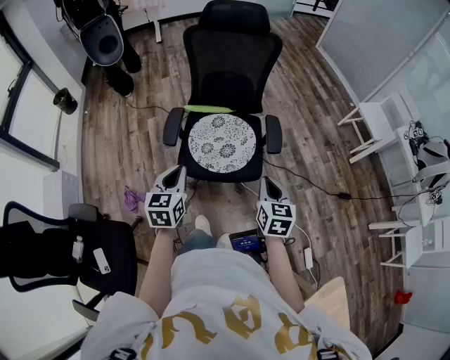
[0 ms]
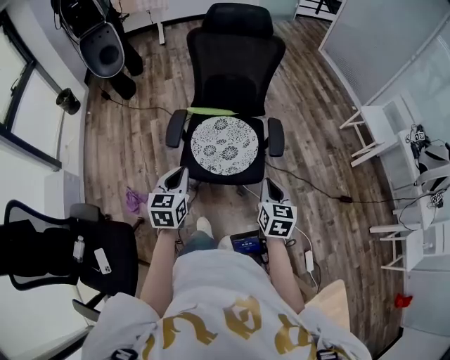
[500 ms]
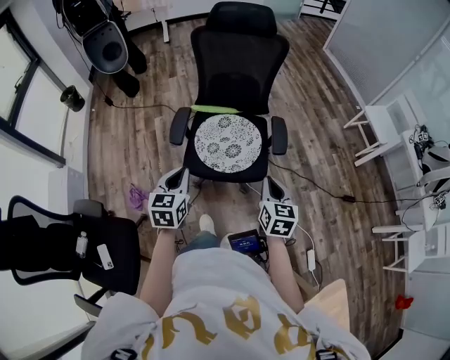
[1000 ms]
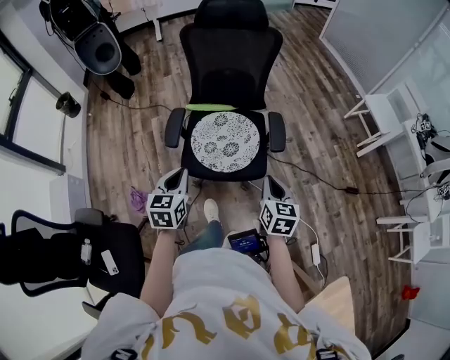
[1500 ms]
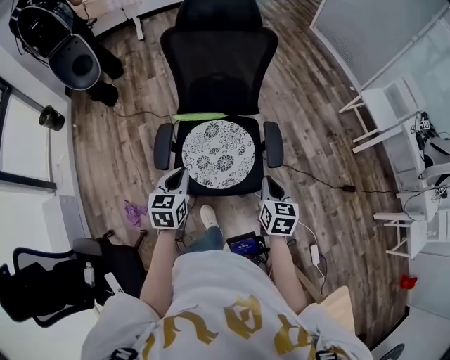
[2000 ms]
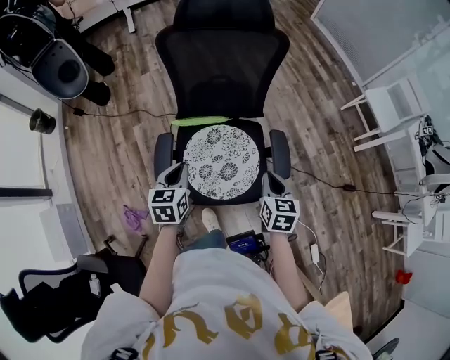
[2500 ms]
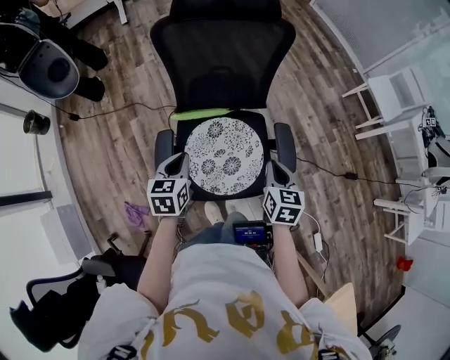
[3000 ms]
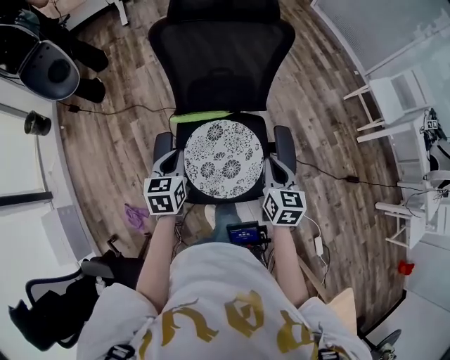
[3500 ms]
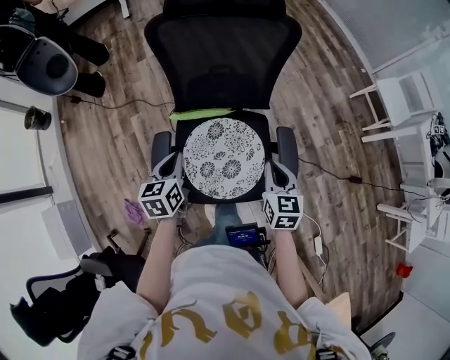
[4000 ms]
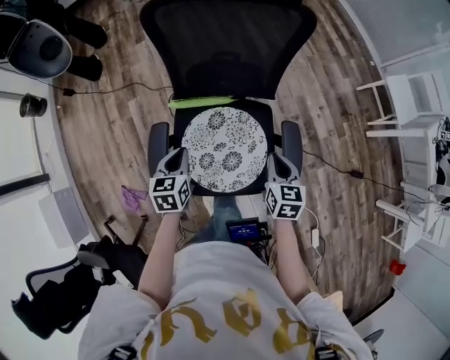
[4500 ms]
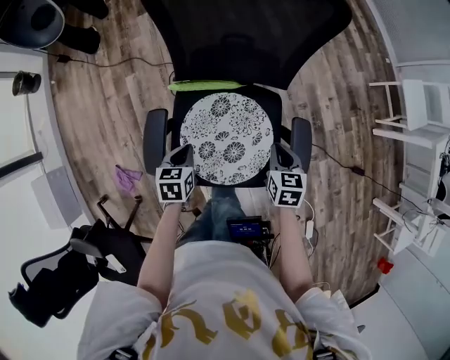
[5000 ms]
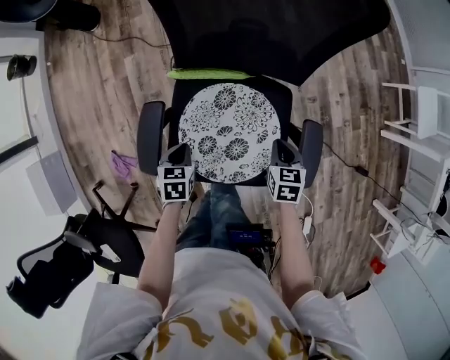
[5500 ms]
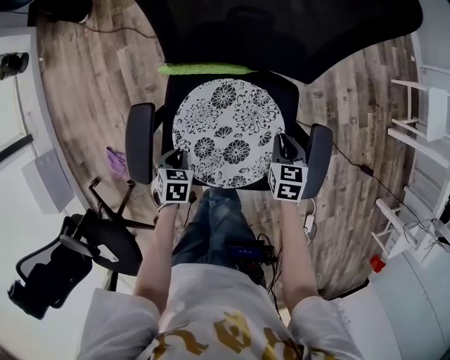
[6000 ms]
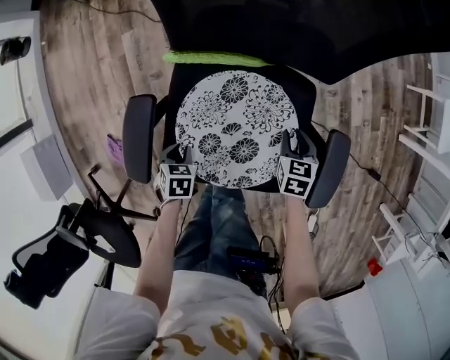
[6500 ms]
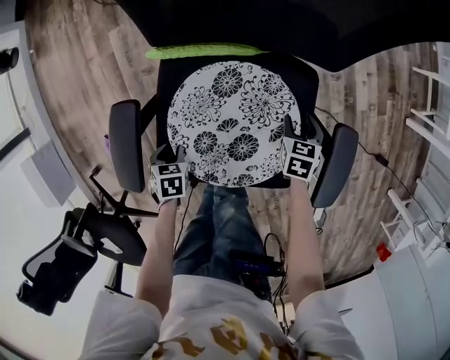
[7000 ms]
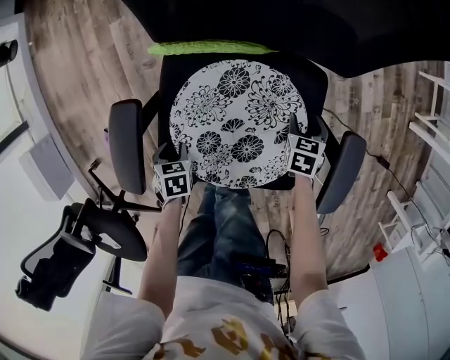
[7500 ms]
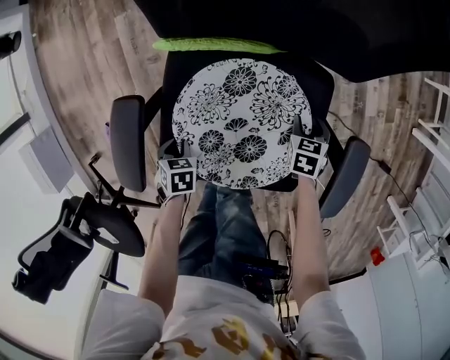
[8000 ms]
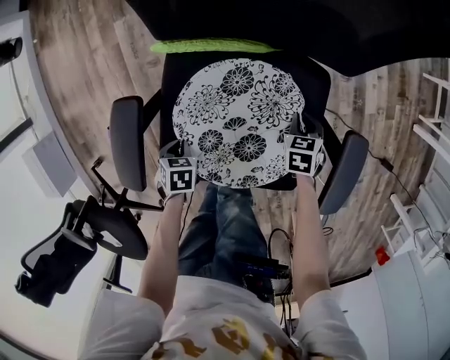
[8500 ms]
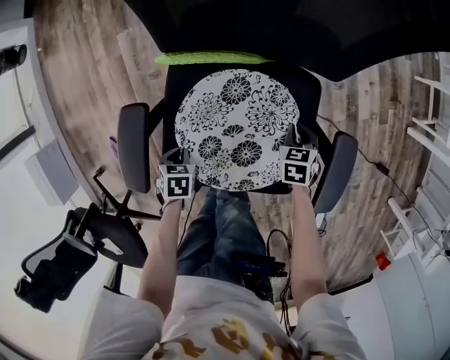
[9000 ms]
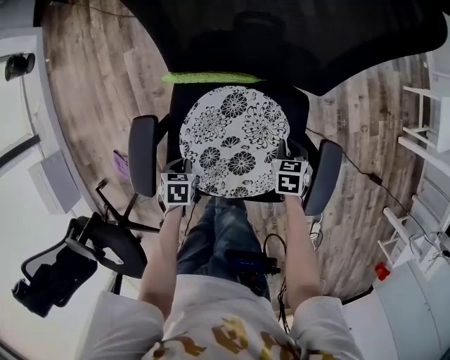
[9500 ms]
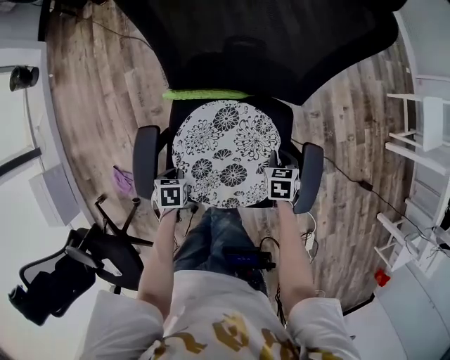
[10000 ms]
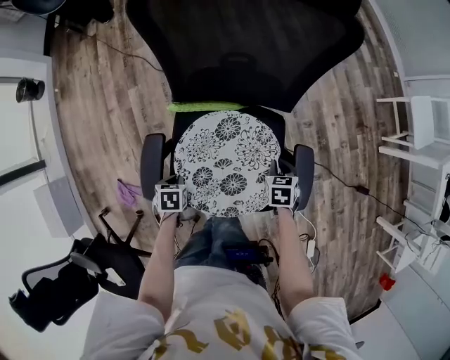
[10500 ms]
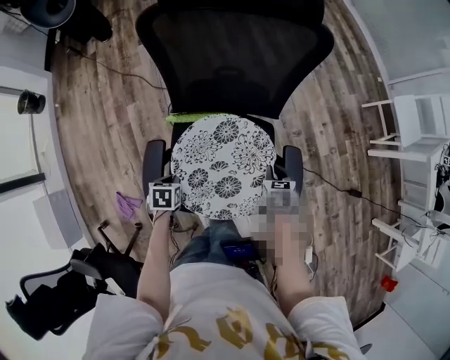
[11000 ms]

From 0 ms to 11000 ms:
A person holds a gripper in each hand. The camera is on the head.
From 0 ms to 2000 ms: The two grippers go some 15 cm forward.
From 2000 ms to 3500 ms: Both grippers travel together forward, approximately 15 cm.
From 3500 ms to 5500 ms: The two grippers go about 25 cm downward. The right gripper swivels roughly 30 degrees; the left gripper rotates about 30 degrees.
From 5500 ms to 7500 ms: Both grippers move downward, approximately 20 cm. The right gripper opens up. Meanwhile the left gripper turns by some 20 degrees, and opens its fingers.
From 7500 ms to 9000 ms: The left gripper closes up. The right gripper closes its fingers.
From 9000 ms to 11000 ms: Both grippers travel together upward, roughly 20 cm.

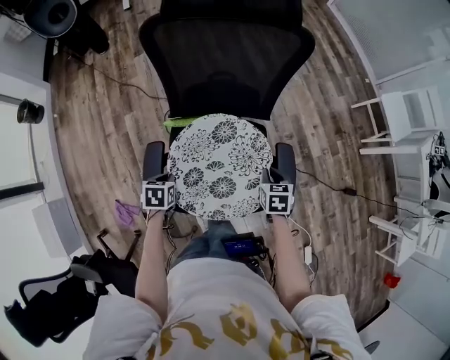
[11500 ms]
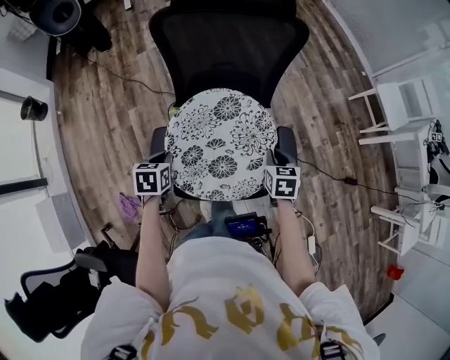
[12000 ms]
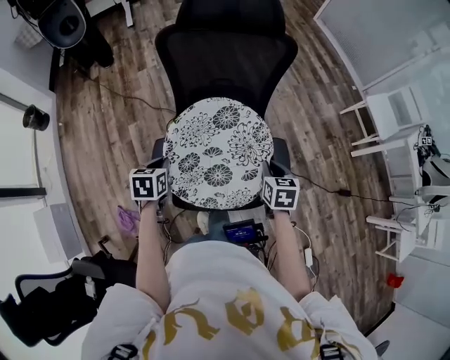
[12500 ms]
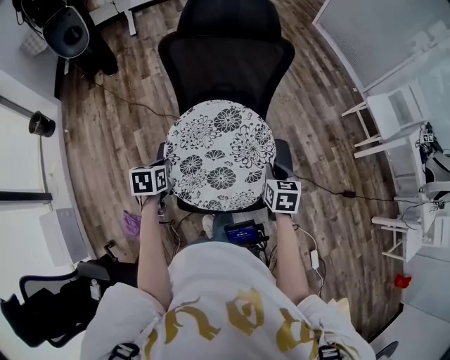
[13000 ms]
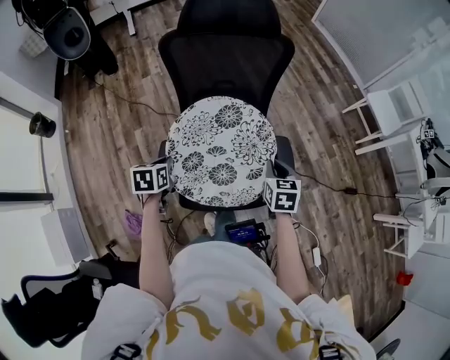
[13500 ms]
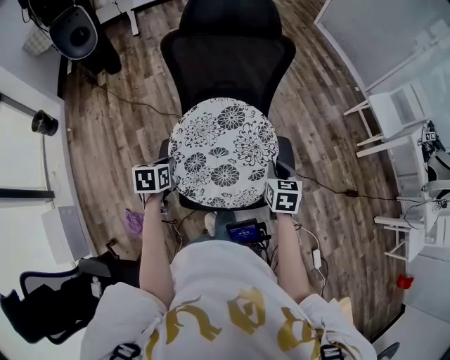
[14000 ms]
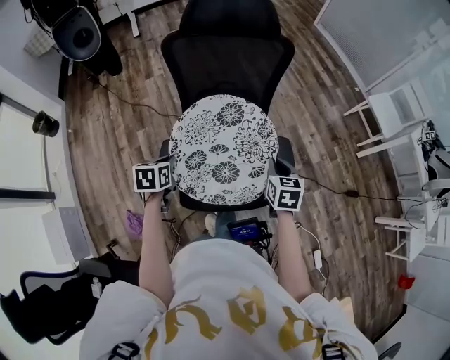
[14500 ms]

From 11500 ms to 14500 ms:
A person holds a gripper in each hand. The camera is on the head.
From 11500 ms to 13000 ms: The grippers both shift upward by some 15 cm.
From 13000 ms to 14500 ms: There are only small adjustments of the grippers.

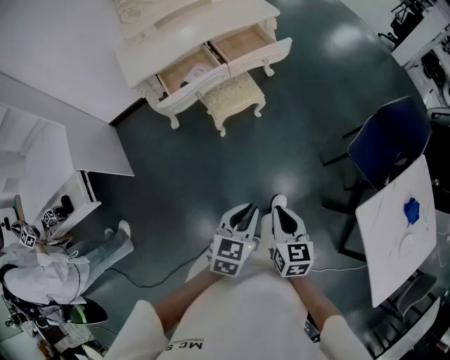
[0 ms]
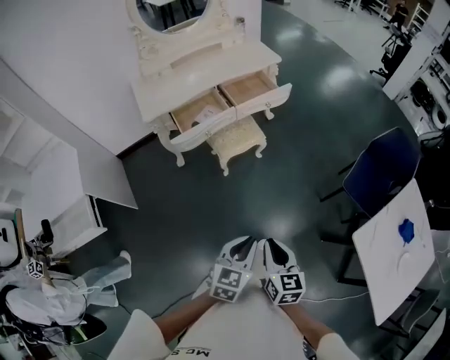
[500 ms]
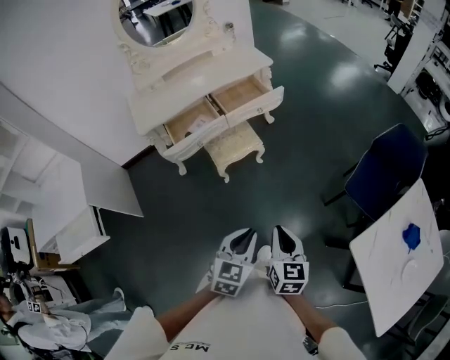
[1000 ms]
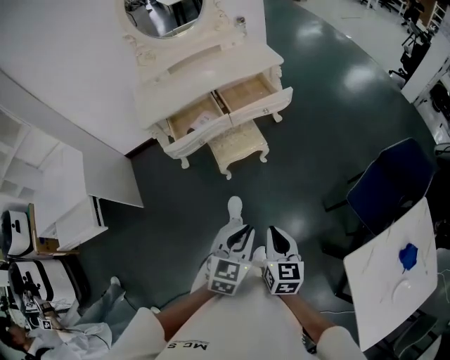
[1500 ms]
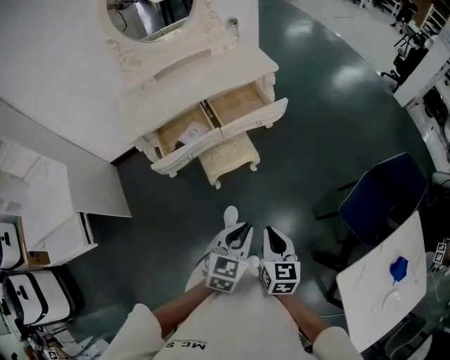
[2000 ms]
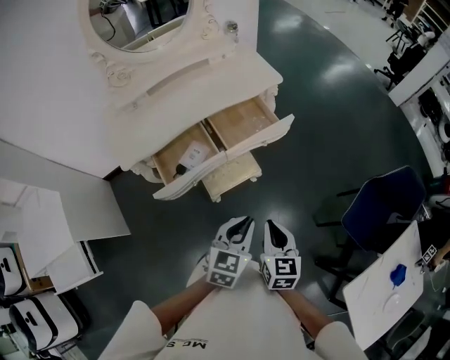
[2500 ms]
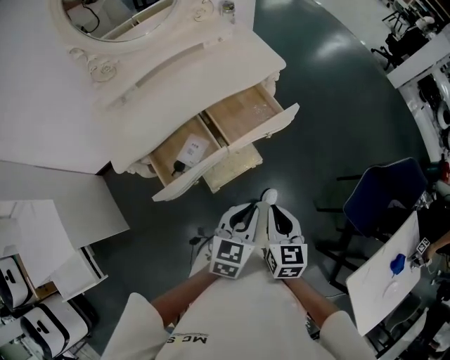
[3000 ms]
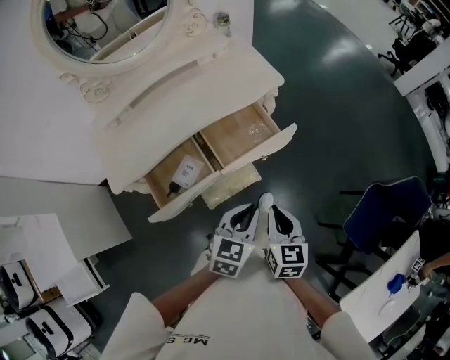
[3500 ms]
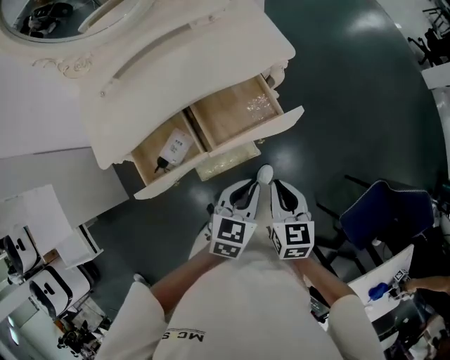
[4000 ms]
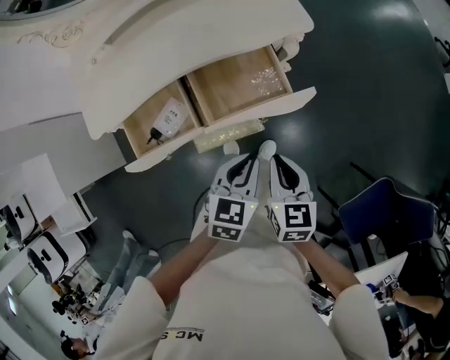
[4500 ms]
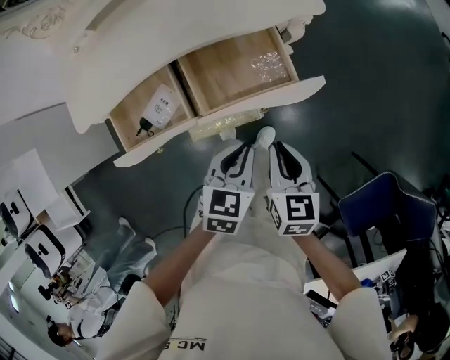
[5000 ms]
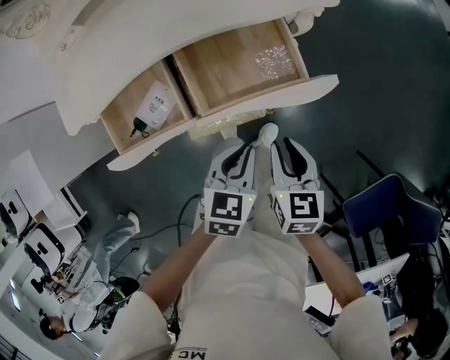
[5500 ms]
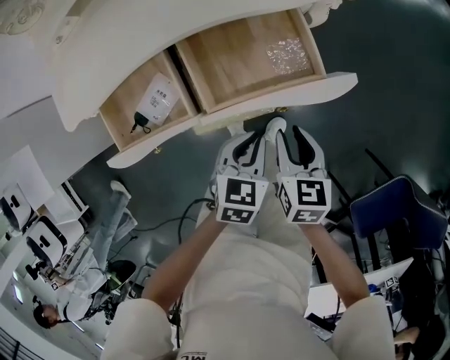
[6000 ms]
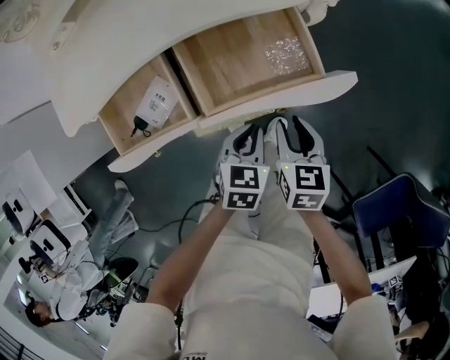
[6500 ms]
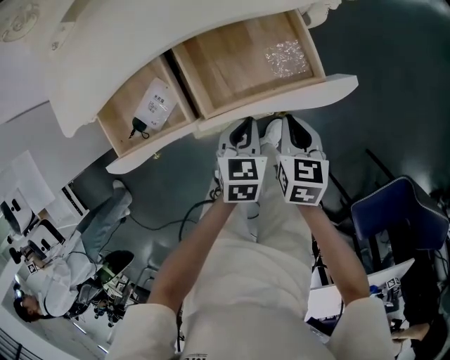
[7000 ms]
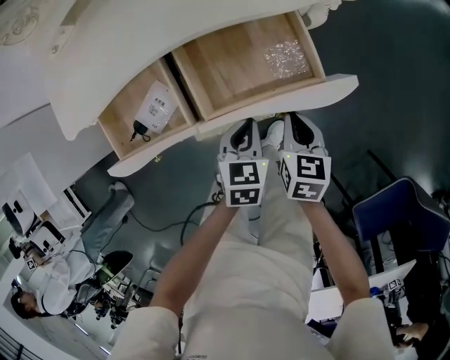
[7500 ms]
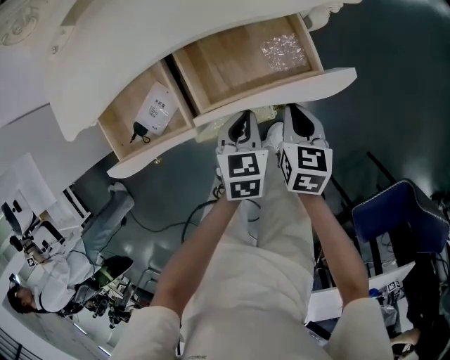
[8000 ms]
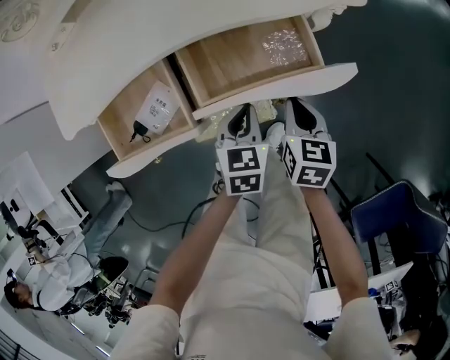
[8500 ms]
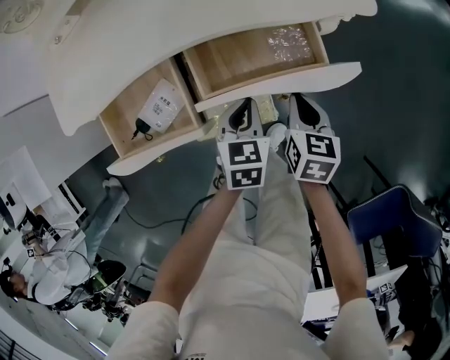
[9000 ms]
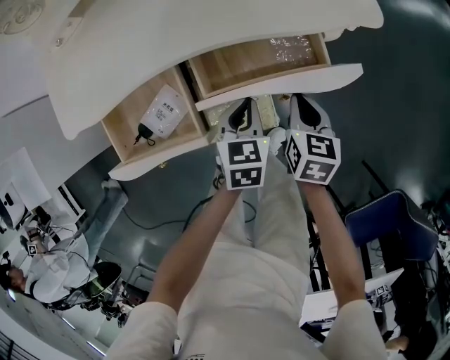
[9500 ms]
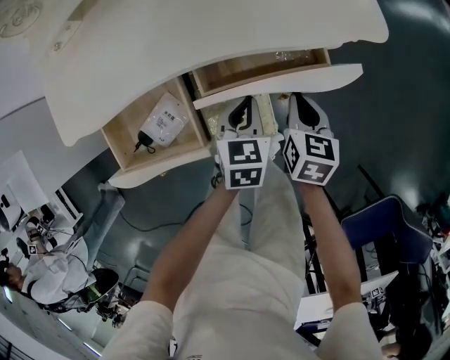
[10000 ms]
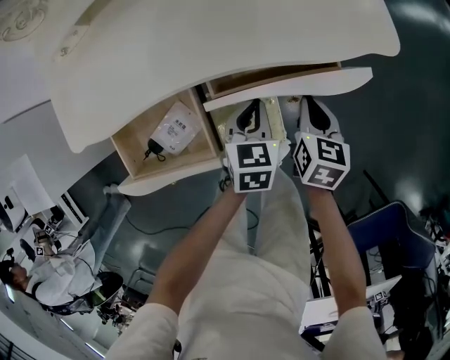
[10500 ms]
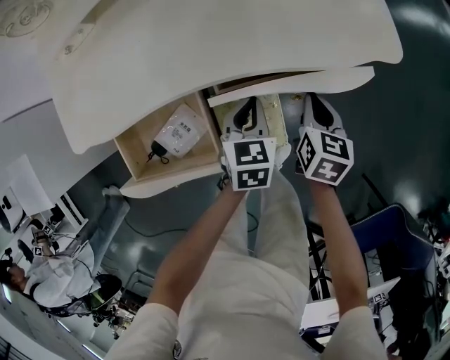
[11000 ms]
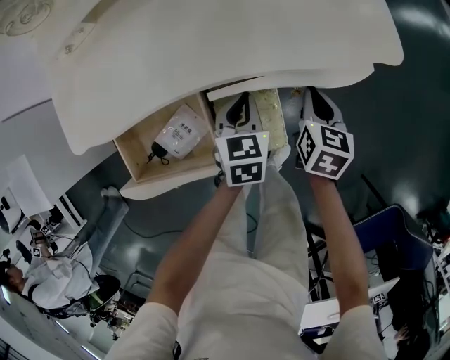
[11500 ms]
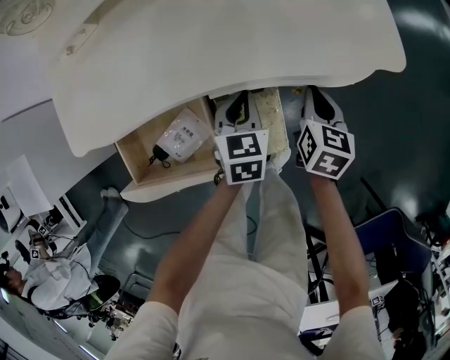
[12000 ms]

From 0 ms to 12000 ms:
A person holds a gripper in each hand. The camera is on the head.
From 0 ms to 2000 ms: Both grippers move forward, some 15 cm.
From 2000 ms to 4000 ms: The two grippers travel together, forward, about 40 cm.
From 4000 ms to 6000 ms: Both grippers travel together downward, about 20 cm. The right gripper opens up.
From 6000 ms to 8000 ms: The right gripper moves forward and downward, about 10 cm, and closes up, while the left gripper is displaced forward by approximately 5 cm.
From 8000 ms to 10000 ms: Both grippers move forward, about 10 cm.
From 10000 ms to 12000 ms: The left gripper shifts roughly 10 cm to the left and forward; the right gripper moves forward, some 5 cm.

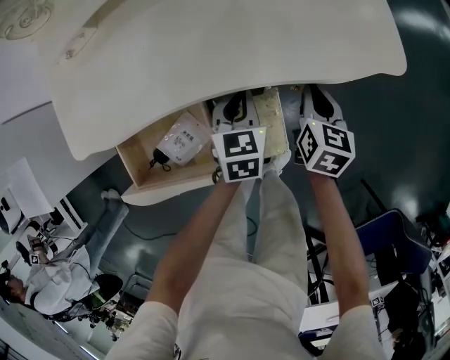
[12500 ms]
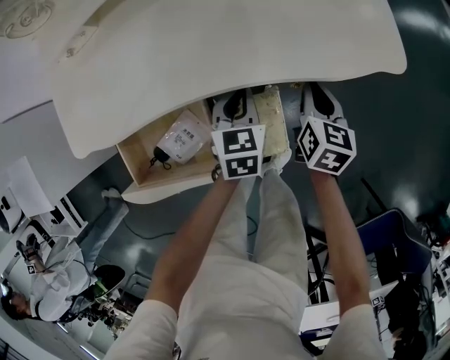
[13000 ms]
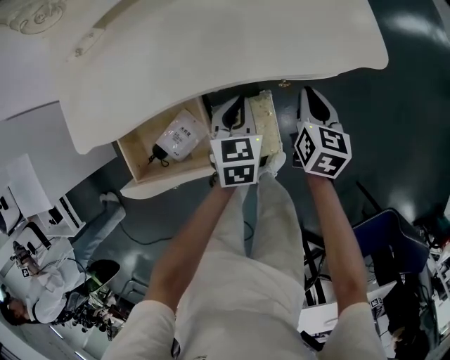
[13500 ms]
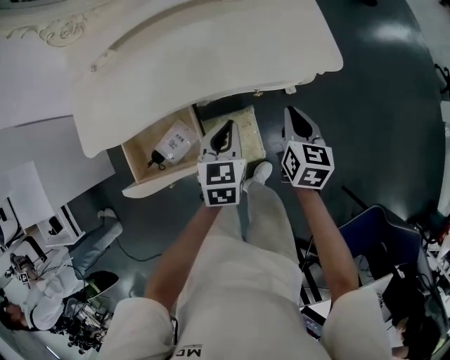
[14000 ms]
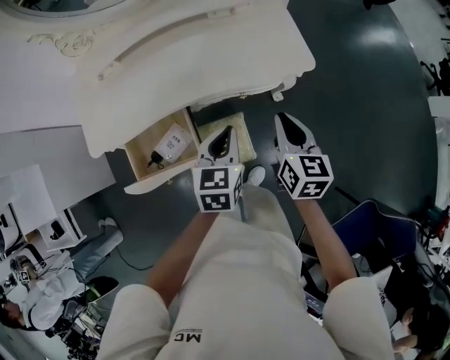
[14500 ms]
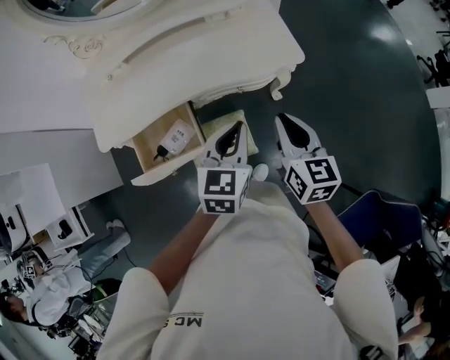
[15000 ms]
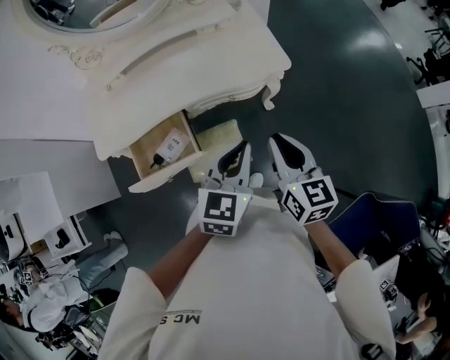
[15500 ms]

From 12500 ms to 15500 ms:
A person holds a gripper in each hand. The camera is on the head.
From 12500 ms to 14000 ms: Both grippers travel together upward and backward, approximately 15 cm.
From 14000 ms to 15500 ms: The left gripper travels upward, backward and to the right by about 30 cm, and rotates roughly 20 degrees. The right gripper goes about 25 cm upward and backward.
